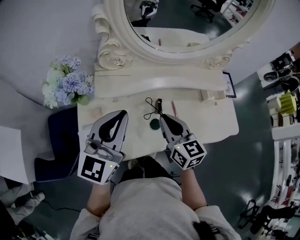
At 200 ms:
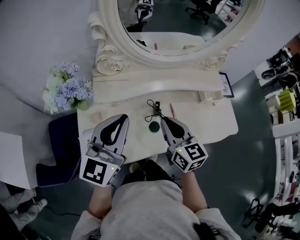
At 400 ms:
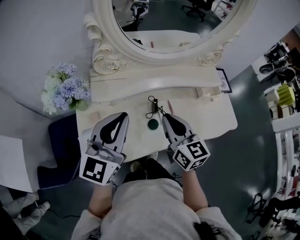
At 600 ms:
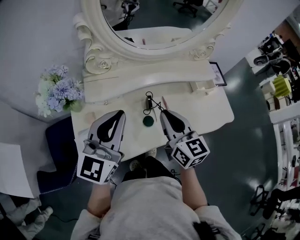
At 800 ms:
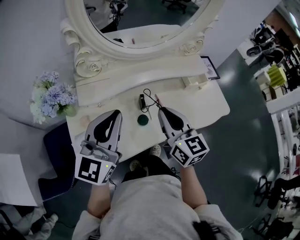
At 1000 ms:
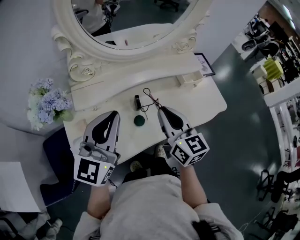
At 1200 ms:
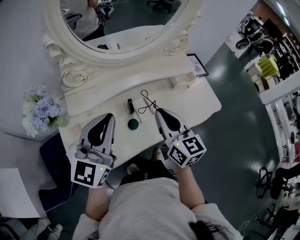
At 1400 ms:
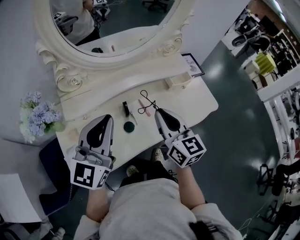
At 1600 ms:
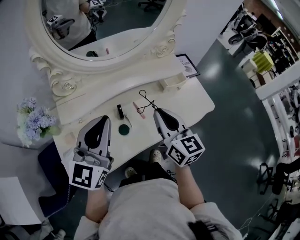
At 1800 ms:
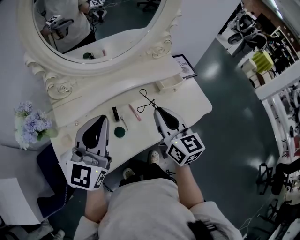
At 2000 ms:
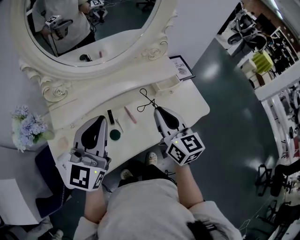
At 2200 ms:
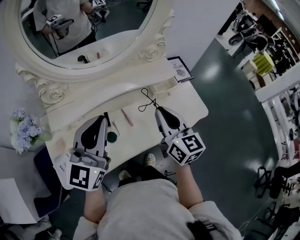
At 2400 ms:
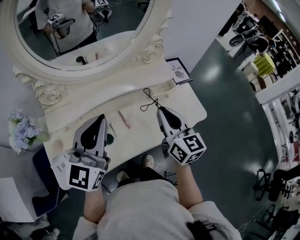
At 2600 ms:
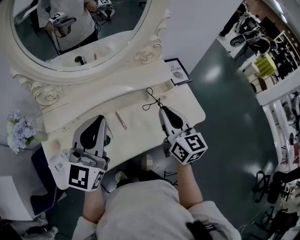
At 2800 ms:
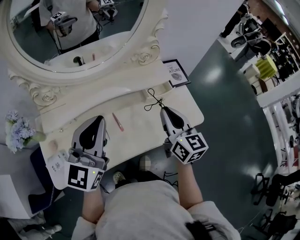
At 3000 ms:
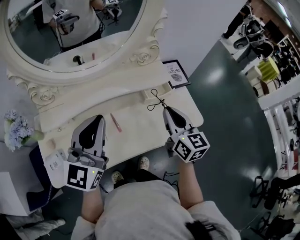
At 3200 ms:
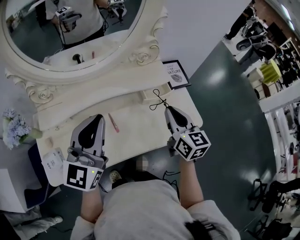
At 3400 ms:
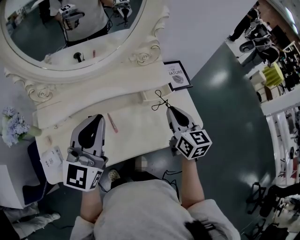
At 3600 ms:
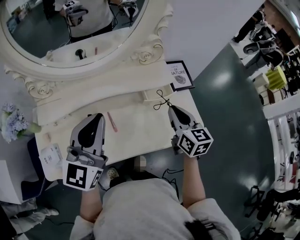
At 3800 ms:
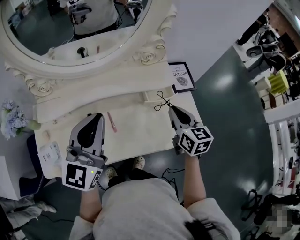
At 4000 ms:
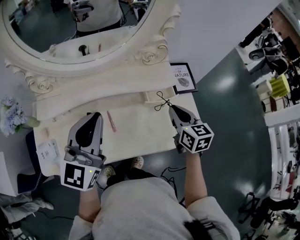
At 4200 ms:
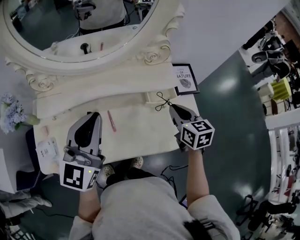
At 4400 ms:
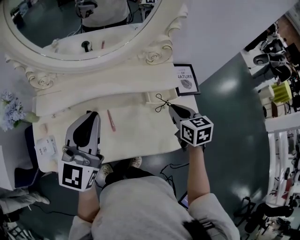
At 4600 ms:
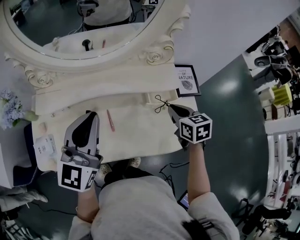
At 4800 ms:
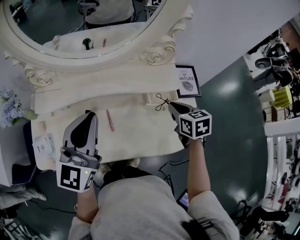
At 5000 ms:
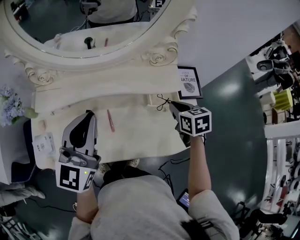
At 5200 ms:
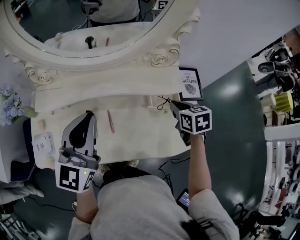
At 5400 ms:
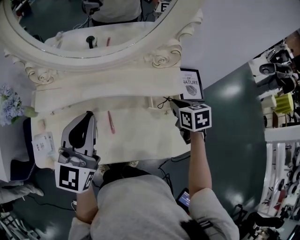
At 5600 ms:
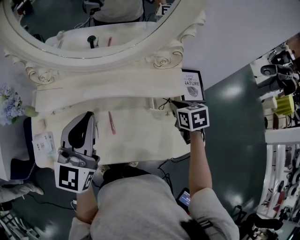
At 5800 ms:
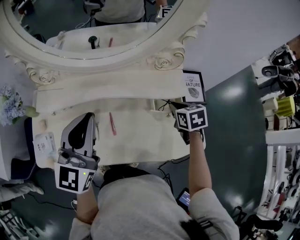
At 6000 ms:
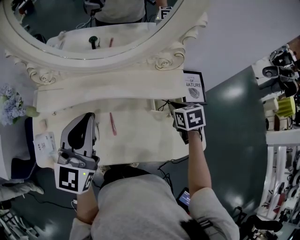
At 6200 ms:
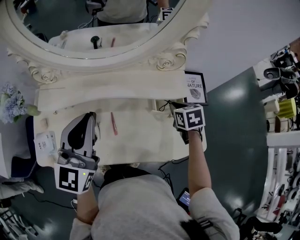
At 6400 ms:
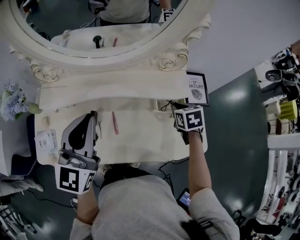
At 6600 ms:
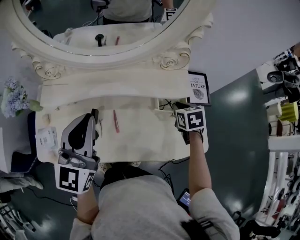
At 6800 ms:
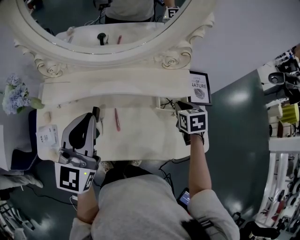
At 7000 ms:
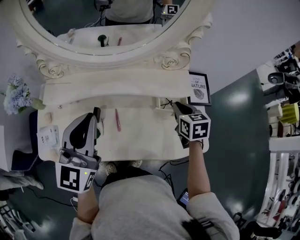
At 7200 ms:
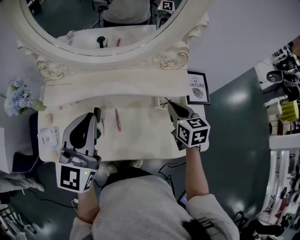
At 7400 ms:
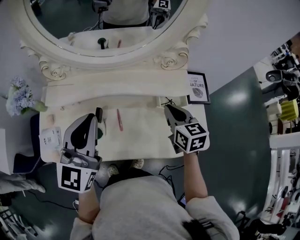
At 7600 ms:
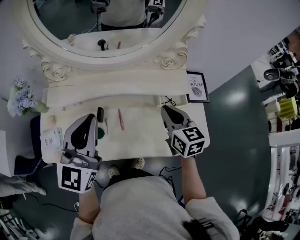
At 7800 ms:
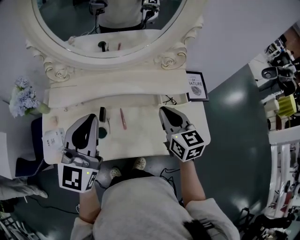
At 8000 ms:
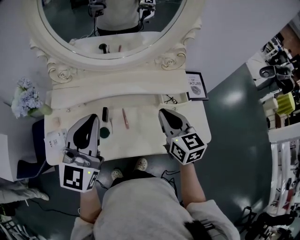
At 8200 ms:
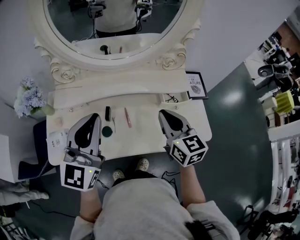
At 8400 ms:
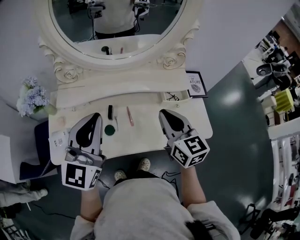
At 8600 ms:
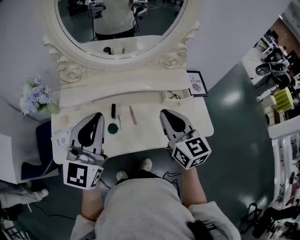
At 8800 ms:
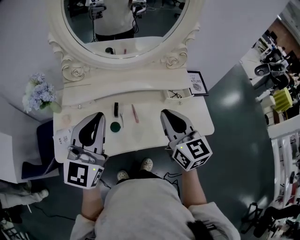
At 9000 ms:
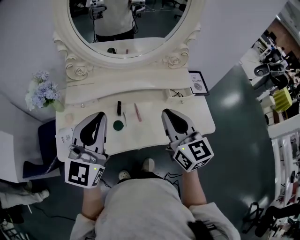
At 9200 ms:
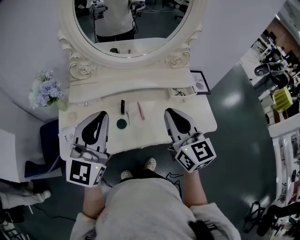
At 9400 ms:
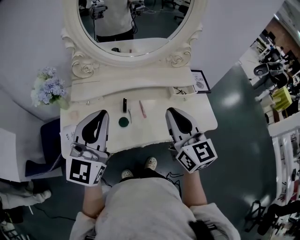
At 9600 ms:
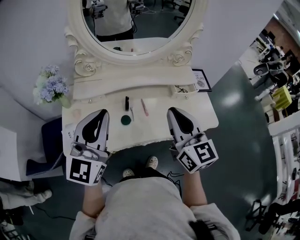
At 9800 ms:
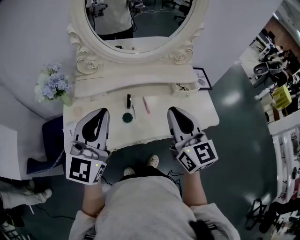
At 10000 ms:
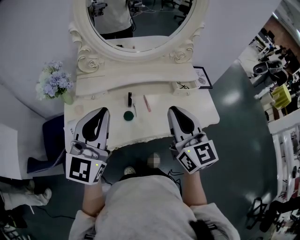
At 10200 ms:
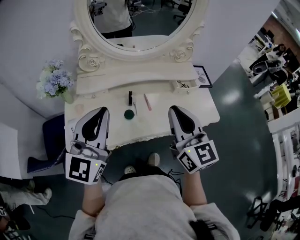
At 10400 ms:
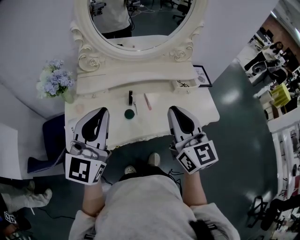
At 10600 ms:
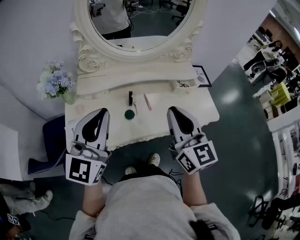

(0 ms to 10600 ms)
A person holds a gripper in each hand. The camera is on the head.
0 ms - 1600 ms: The left gripper heads to the right, covering roughly 10 cm. Meanwhile the right gripper moves to the right and upward, approximately 15 cm, and turns by roughly 20 degrees.
1600 ms - 3000 ms: Both grippers travel together to the right and forward, roughly 15 cm.
3000 ms - 4600 ms: The right gripper is displaced downward and forward by about 15 cm, and swivels approximately 30 degrees.
4600 ms - 6000 ms: The right gripper moves forward and downward, roughly 10 cm.
6000 ms - 7600 ms: The right gripper goes approximately 15 cm upward, to the left and backward, and tilts its fingers some 30 degrees upward. The left gripper changes place by approximately 5 cm.
7600 ms - 9000 ms: The left gripper goes about 10 cm backward and to the left. Meanwhile the right gripper travels backward, upward and to the left by roughly 20 cm.
9000 ms - 10600 ms: The grippers both shift backward and to the left by roughly 10 cm.

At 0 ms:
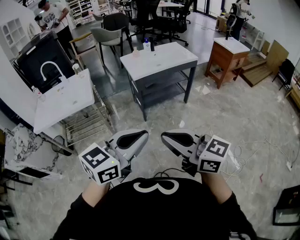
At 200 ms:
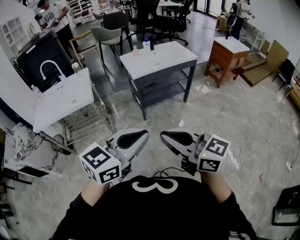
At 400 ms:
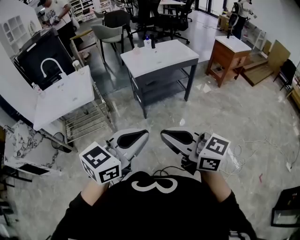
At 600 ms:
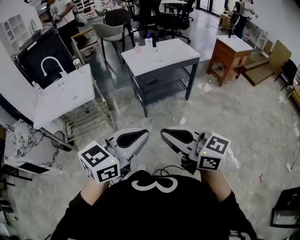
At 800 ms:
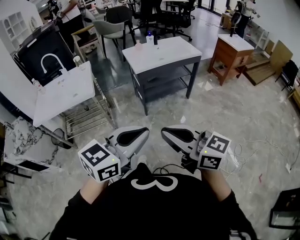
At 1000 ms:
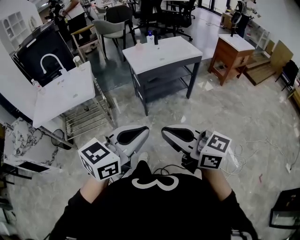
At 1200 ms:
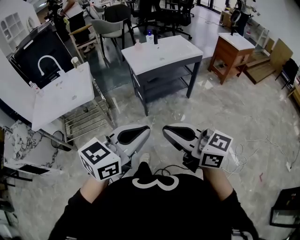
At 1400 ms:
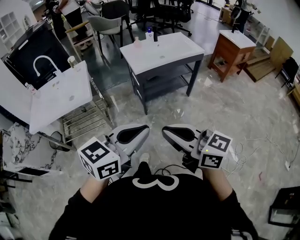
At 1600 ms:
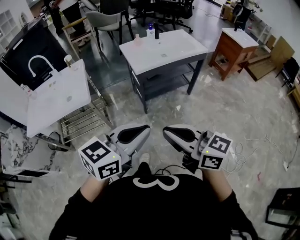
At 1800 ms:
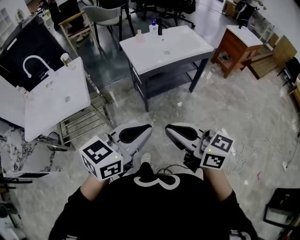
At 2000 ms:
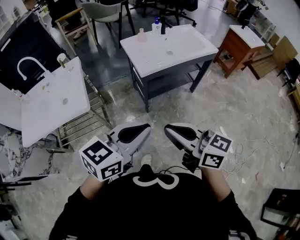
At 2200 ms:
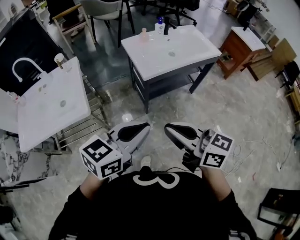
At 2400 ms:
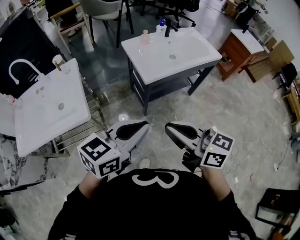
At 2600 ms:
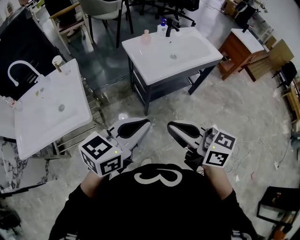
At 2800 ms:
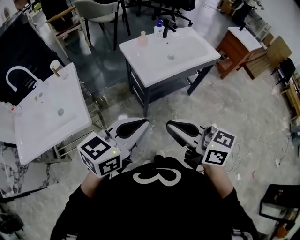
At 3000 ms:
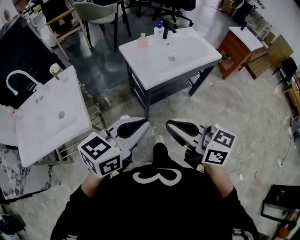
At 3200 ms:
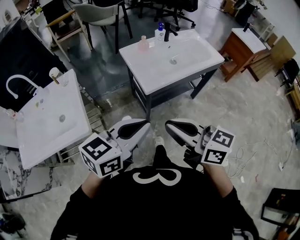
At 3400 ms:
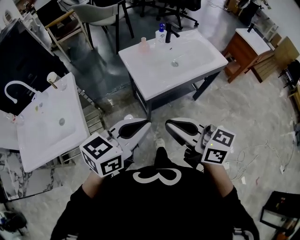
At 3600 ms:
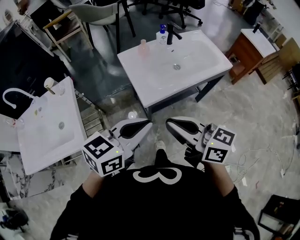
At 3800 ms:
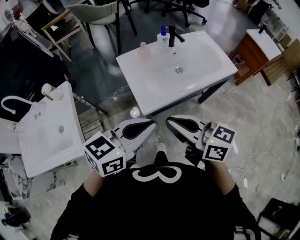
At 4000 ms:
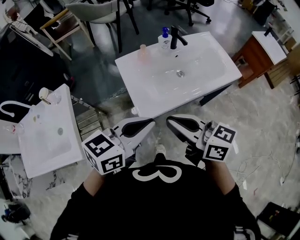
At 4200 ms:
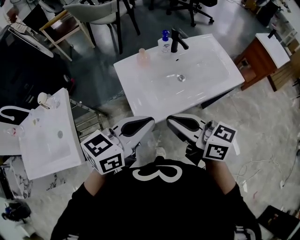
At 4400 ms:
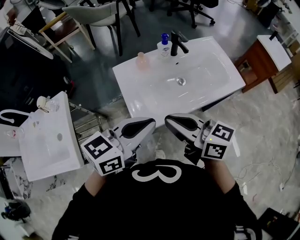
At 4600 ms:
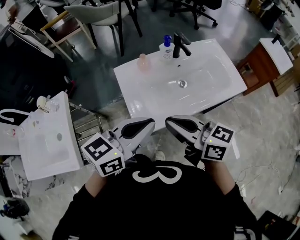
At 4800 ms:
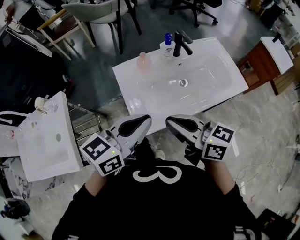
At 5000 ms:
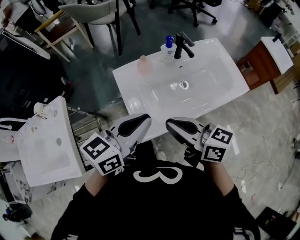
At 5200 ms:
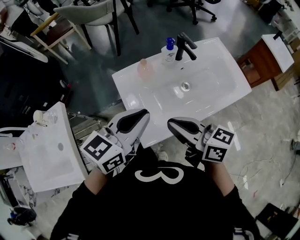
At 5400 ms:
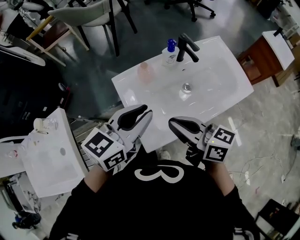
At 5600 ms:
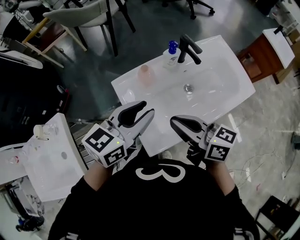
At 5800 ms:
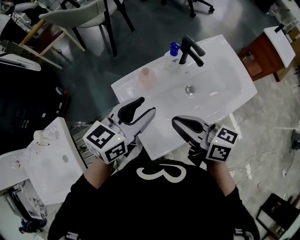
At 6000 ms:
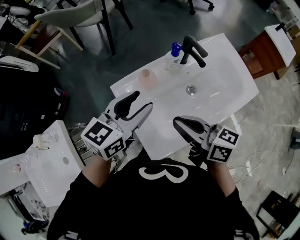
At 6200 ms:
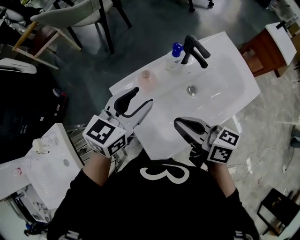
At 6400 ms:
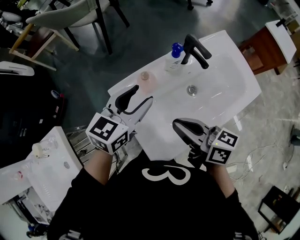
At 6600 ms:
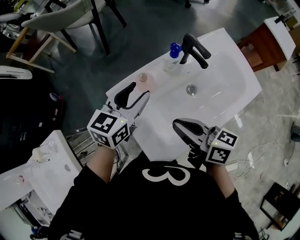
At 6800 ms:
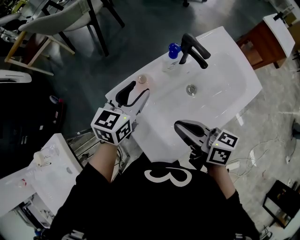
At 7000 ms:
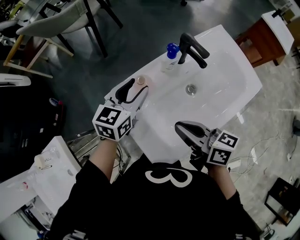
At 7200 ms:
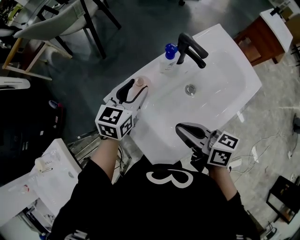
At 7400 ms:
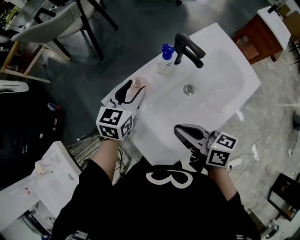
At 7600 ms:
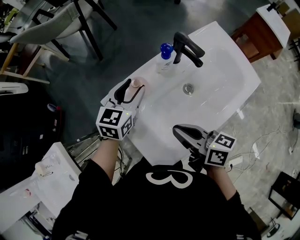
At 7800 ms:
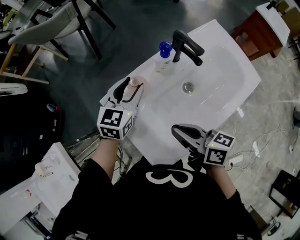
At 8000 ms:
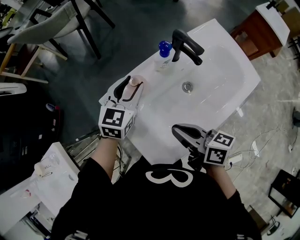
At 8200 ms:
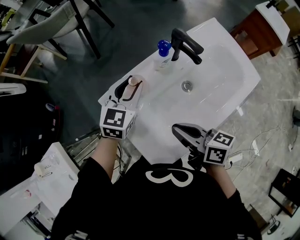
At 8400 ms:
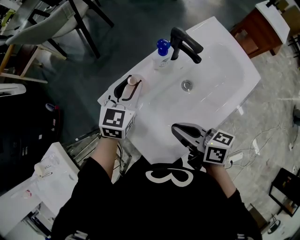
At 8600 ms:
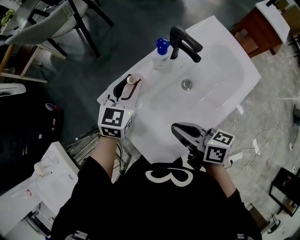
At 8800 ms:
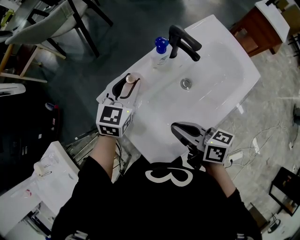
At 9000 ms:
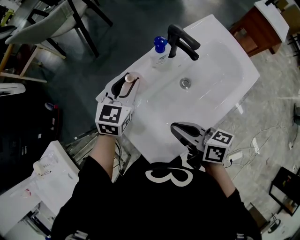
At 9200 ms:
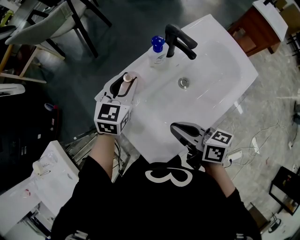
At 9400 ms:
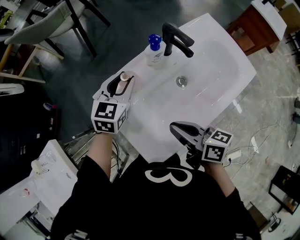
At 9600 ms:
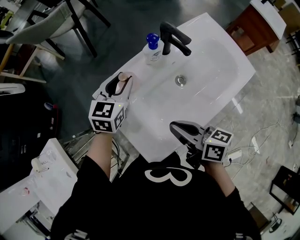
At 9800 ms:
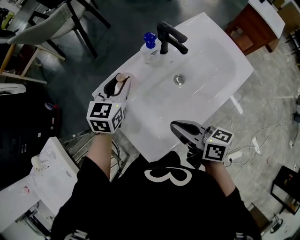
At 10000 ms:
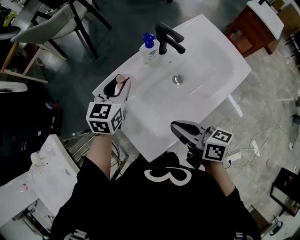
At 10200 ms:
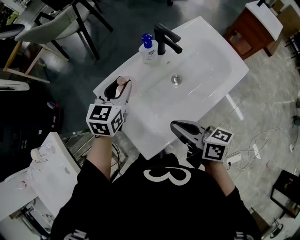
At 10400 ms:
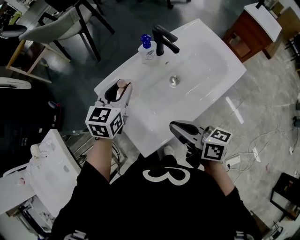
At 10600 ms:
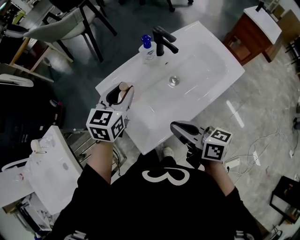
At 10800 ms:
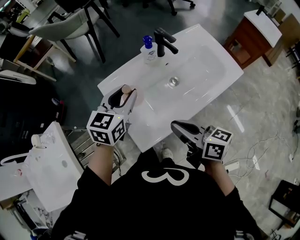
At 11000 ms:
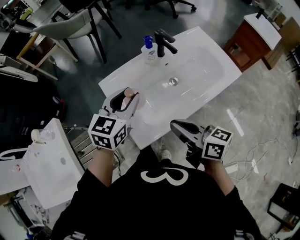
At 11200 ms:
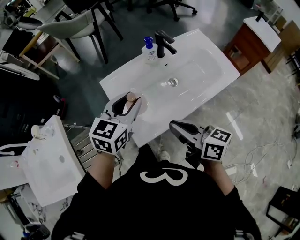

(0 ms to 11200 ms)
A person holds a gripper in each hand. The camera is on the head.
0 ms - 1600 ms: Both grippers travel together forward, about 15 cm.
1600 ms - 3200 ms: Both grippers move forward, roughly 25 cm.
3200 ms - 4800 ms: The two grippers go approximately 30 cm forward.
4800 ms - 6400 ms: The right gripper moves forward and downward, roughly 15 cm; the left gripper is displaced forward by some 25 cm, and opens.
6400 ms - 8000 ms: The left gripper is displaced downward and forward by some 10 cm. The right gripper travels downward by roughly 5 cm.
8000 ms - 9600 ms: The grippers stay close to where they were, moving slightly.
9600 ms - 11200 ms: The left gripper travels backward and upward by roughly 20 cm; the right gripper moves backward and upward, about 15 cm.

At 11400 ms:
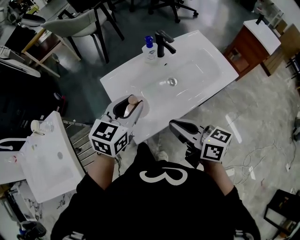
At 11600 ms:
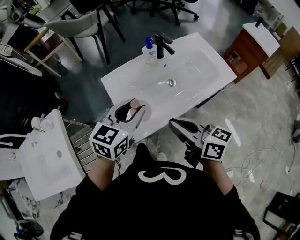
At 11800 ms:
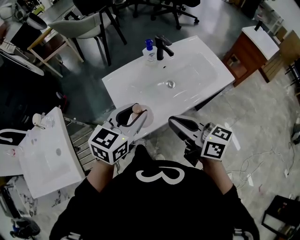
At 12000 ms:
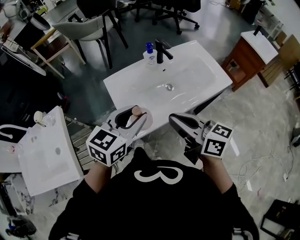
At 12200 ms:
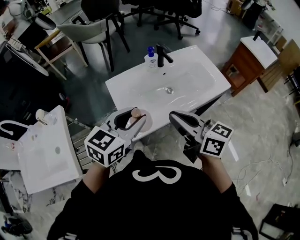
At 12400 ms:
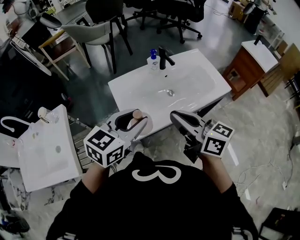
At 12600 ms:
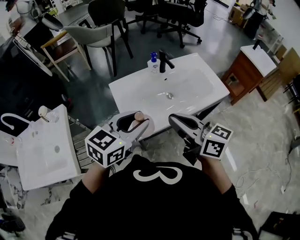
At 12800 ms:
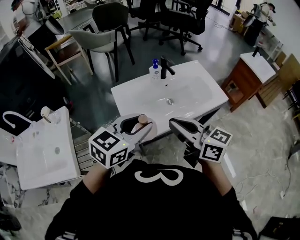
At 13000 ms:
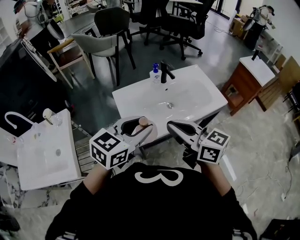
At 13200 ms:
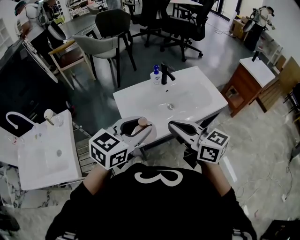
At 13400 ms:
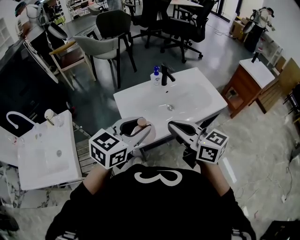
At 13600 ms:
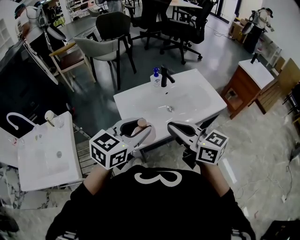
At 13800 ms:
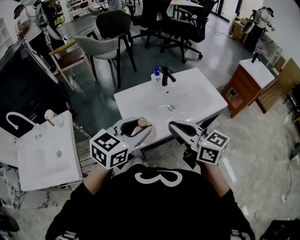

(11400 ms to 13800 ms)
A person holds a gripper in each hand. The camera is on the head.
11400 ms - 12600 ms: The left gripper heads backward and upward, covering about 15 cm; the right gripper moves upward, about 10 cm.
12600 ms - 13800 ms: There are only small adjustments of the grippers.
